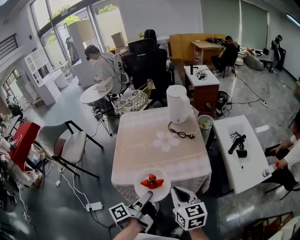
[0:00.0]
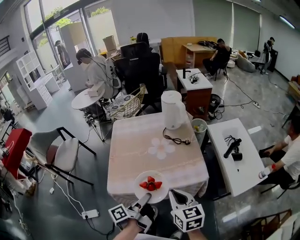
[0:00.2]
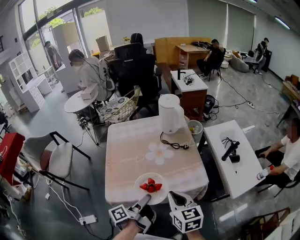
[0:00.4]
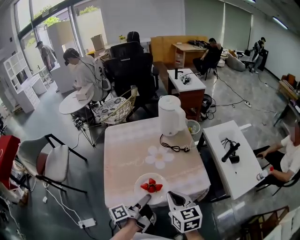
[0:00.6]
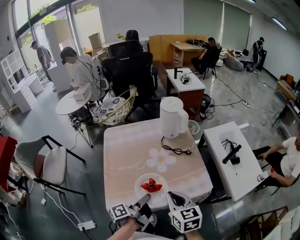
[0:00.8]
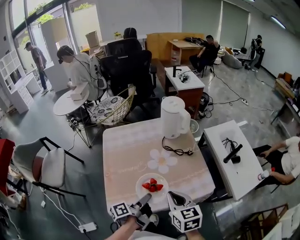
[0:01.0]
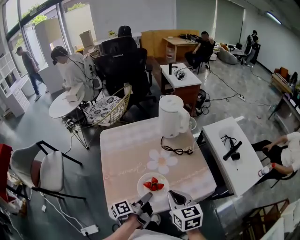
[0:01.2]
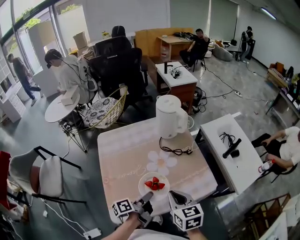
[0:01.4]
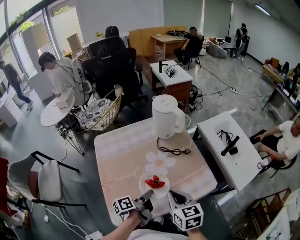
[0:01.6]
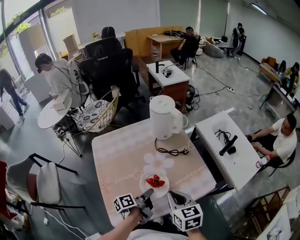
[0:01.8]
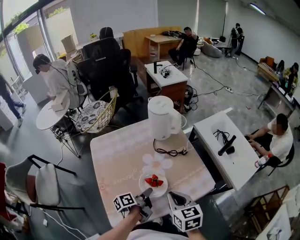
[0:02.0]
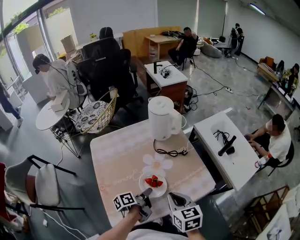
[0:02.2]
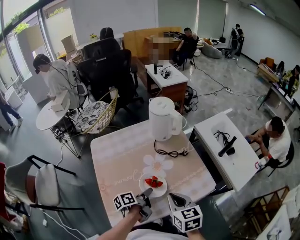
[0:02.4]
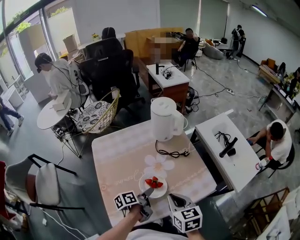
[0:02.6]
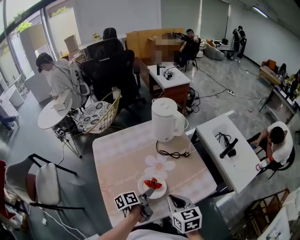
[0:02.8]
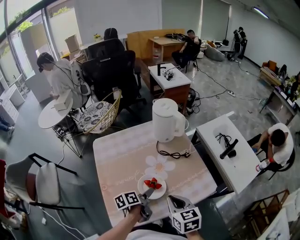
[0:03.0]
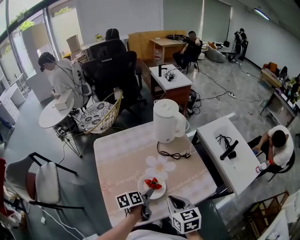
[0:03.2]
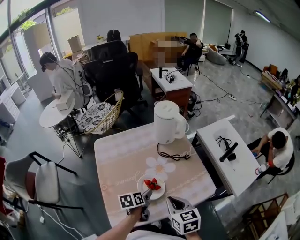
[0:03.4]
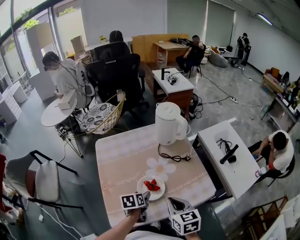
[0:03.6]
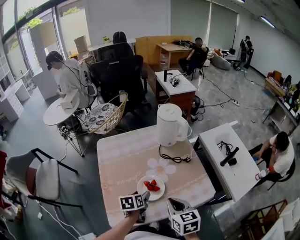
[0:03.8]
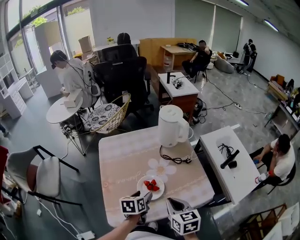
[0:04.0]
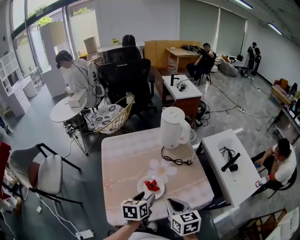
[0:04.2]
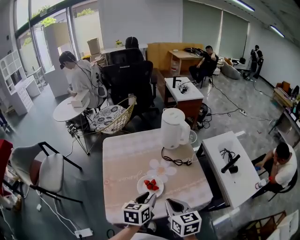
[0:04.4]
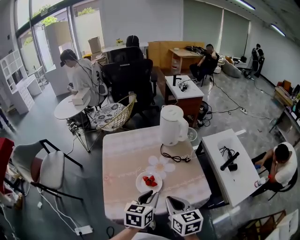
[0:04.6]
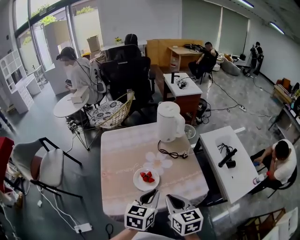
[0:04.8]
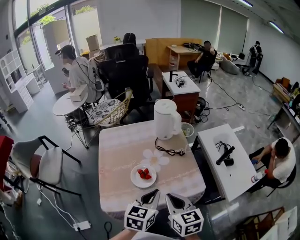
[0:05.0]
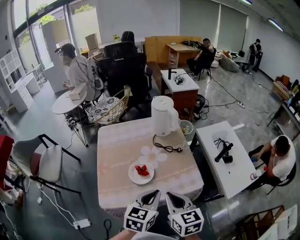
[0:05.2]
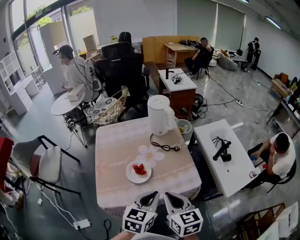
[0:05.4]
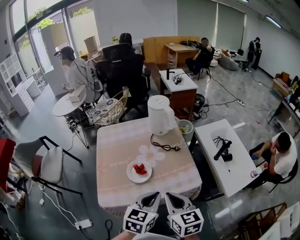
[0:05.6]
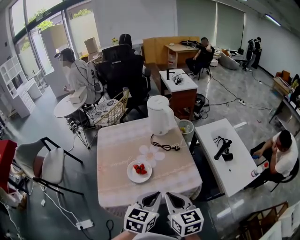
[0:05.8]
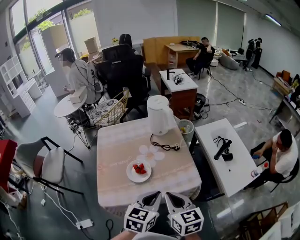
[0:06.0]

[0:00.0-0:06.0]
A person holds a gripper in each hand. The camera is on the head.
0:00.0 to 0:01.6: The right gripper ends up approximately 20 cm from where it was.
0:04.4 to 0:06.0: The right gripper changes place by approximately 10 cm.

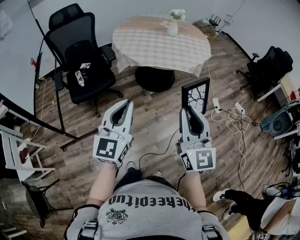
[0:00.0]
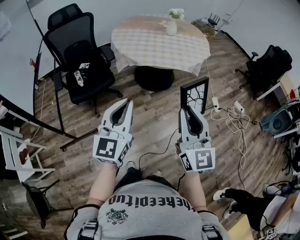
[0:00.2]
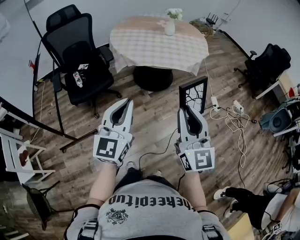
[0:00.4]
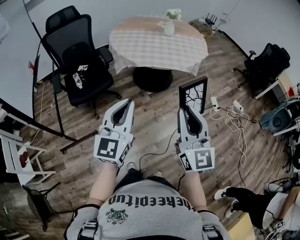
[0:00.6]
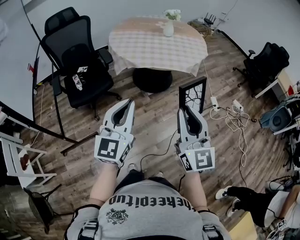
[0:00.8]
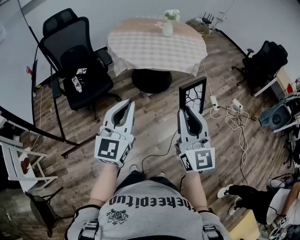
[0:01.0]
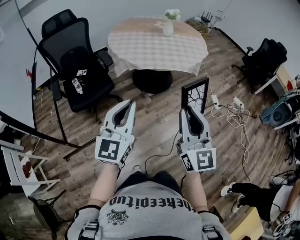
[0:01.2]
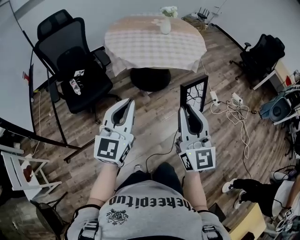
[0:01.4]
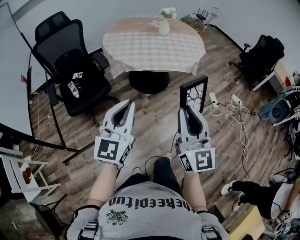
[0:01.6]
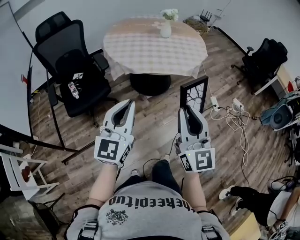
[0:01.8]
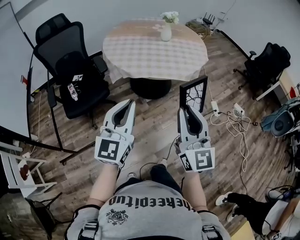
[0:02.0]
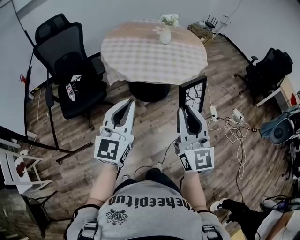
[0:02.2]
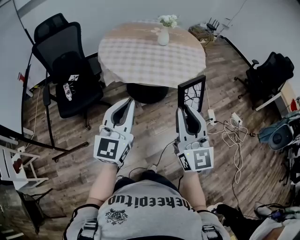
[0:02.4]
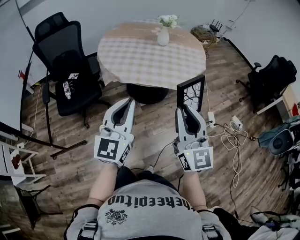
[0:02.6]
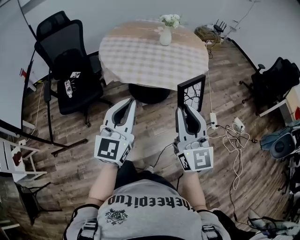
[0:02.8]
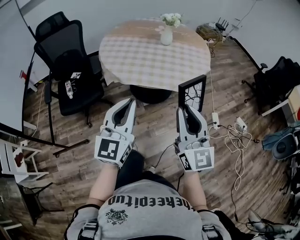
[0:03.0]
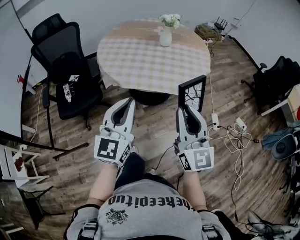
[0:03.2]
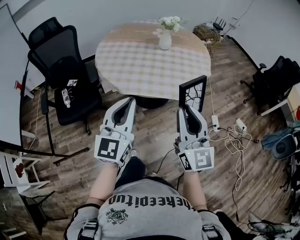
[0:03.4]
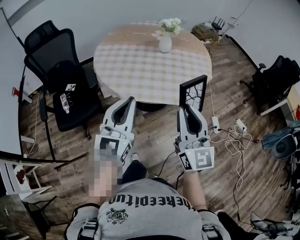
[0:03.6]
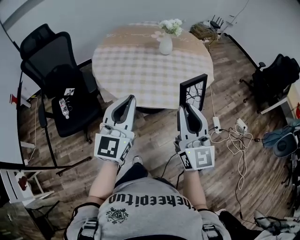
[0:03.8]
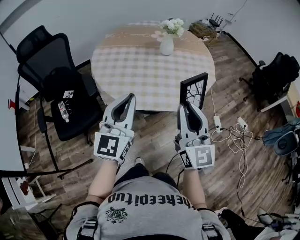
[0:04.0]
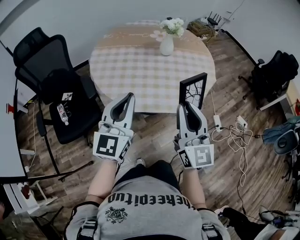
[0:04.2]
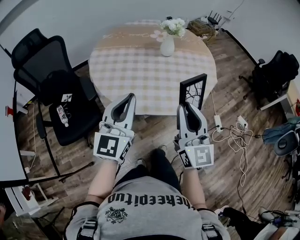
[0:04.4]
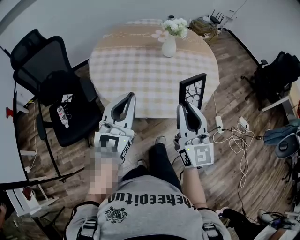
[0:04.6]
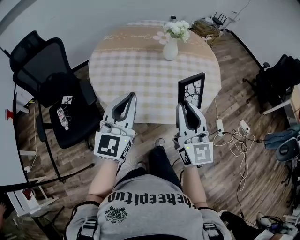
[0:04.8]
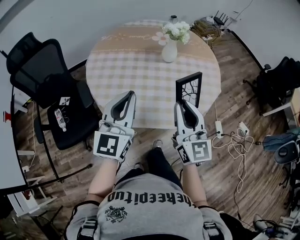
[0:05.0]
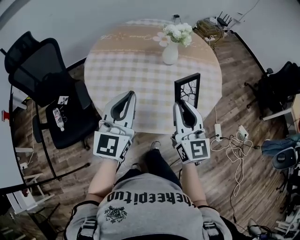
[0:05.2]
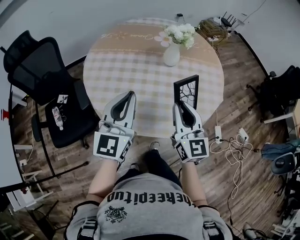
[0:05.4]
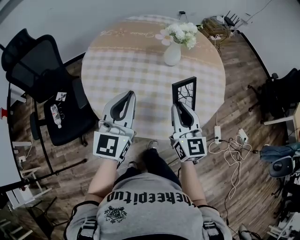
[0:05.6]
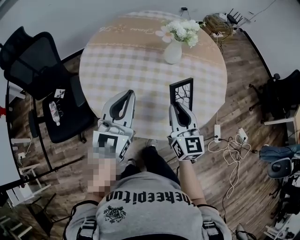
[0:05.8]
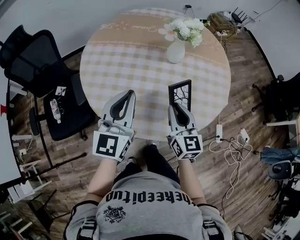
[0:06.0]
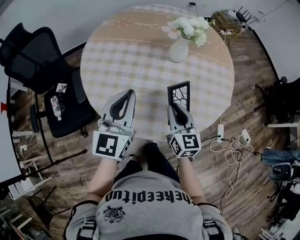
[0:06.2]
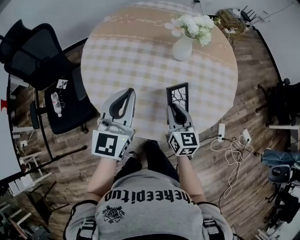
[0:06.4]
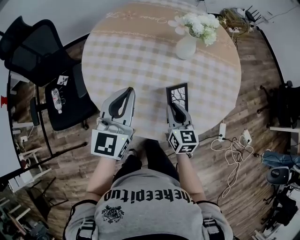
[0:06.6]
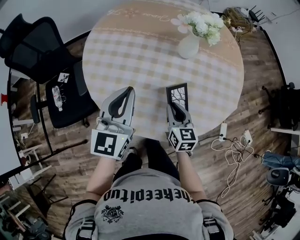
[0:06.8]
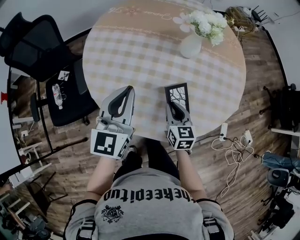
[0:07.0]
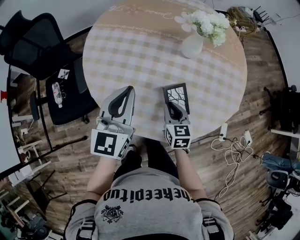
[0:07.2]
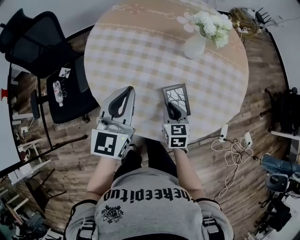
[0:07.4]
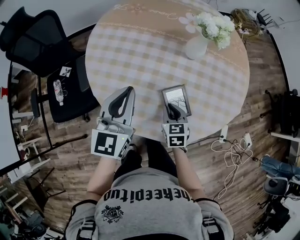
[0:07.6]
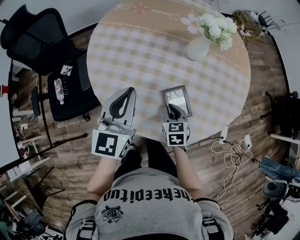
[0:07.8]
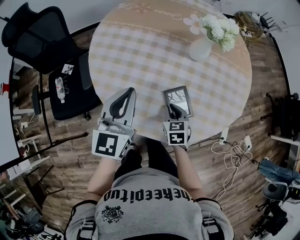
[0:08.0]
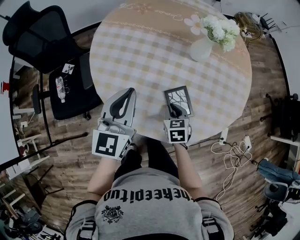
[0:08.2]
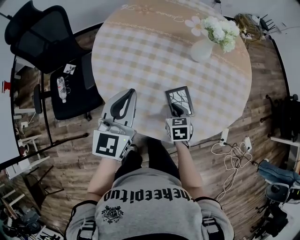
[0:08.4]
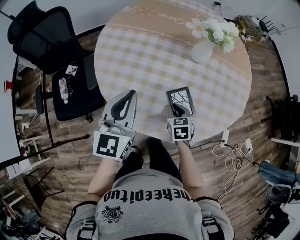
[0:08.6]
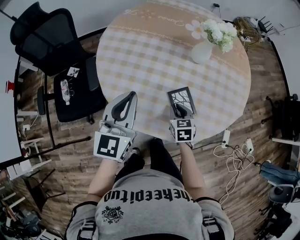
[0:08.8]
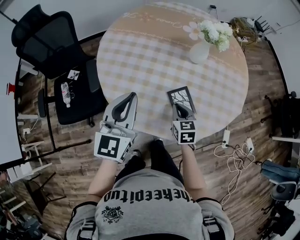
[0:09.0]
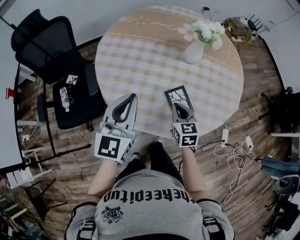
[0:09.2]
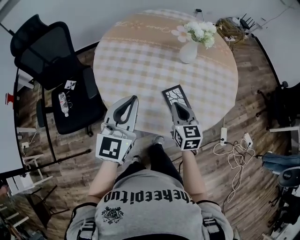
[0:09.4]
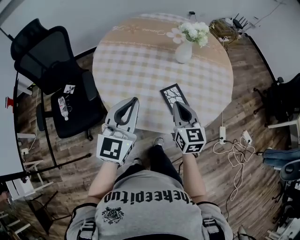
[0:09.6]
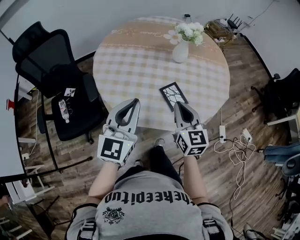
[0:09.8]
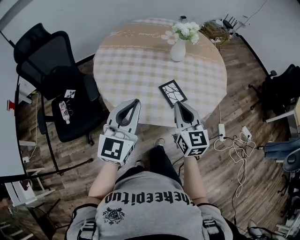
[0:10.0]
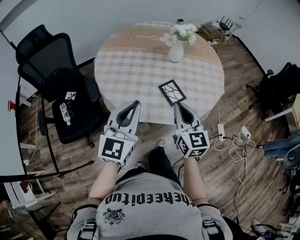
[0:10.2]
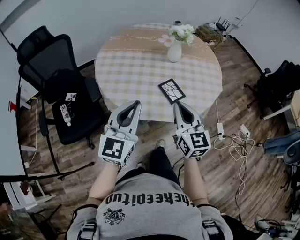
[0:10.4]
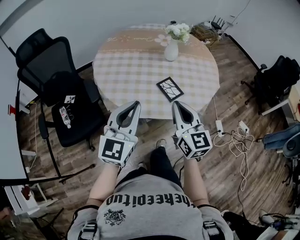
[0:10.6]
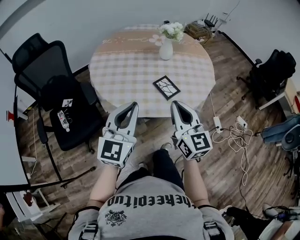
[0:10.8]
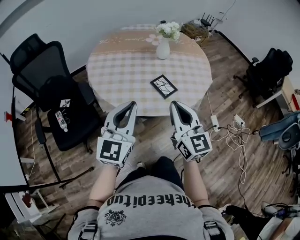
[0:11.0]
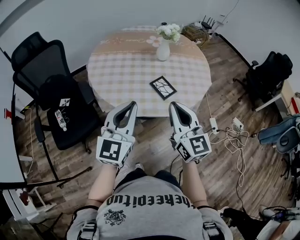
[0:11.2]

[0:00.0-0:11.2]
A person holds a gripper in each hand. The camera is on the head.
0:00.0 to 0:01.6: The left gripper goes roughly 5 cm forward, while the right gripper moves about 5 cm.
0:01.6 to 0:03.2: Both grippers travel together forward and to the right, roughly 25 cm.
0:03.2 to 0:04.8: The grippers both shift forward by roughly 25 cm.
0:04.8 to 0:06.4: The left gripper heads forward and downward, covering about 15 cm. The right gripper travels downward and forward by some 30 cm, and swivels about 30 degrees.
0:06.4 to 0:08.0: The right gripper heads downward, covering approximately 10 cm, and turns by some 30 degrees; the left gripper changes place by approximately 5 cm.
0:08.0 to 0:09.6: The left gripper heads backward and upward, covering roughly 10 cm. The right gripper shifts some 20 cm upward, and changes its angle by roughly 30 degrees.
0:09.6 to 0:11.2: The left gripper goes about 15 cm backward; the right gripper moves backward and upward, approximately 25 cm, and swivels about 20 degrees.

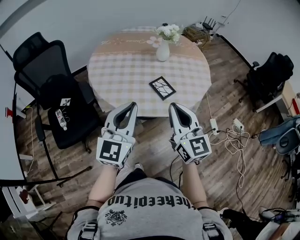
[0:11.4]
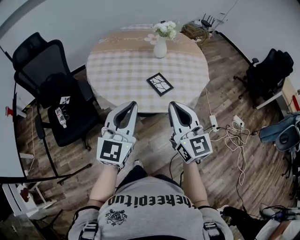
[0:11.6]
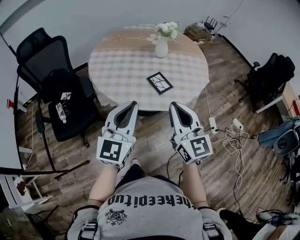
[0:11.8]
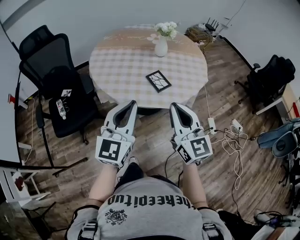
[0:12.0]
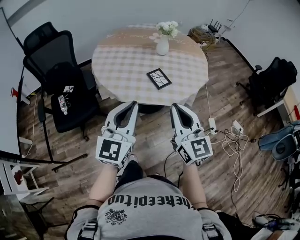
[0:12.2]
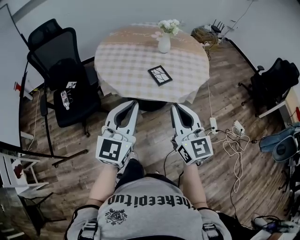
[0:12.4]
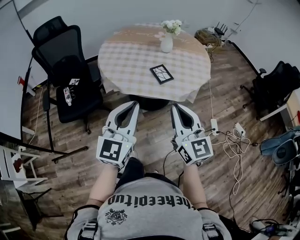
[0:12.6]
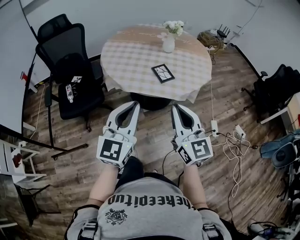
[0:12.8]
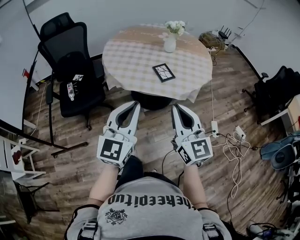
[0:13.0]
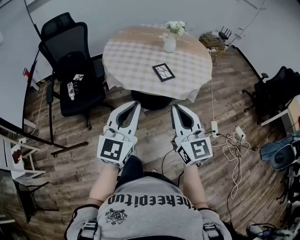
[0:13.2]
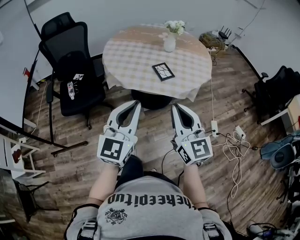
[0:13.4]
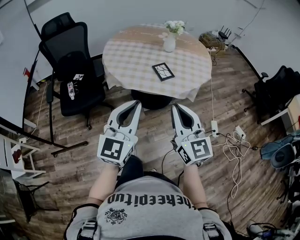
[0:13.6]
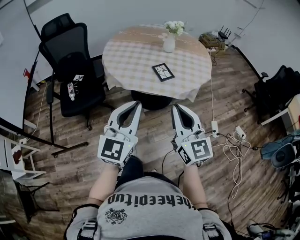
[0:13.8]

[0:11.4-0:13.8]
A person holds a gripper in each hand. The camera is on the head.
0:11.4 to 0:12.6: The two grippers go roughly 15 cm backward and to the right.
0:12.6 to 0:13.8: The left gripper changes place by approximately 5 cm.

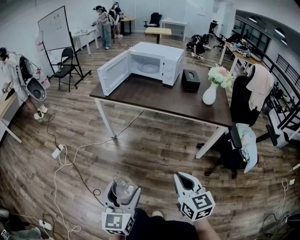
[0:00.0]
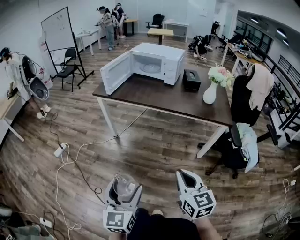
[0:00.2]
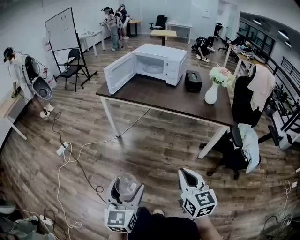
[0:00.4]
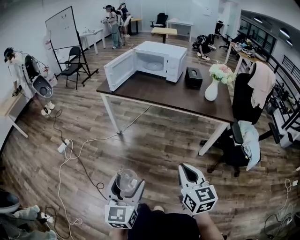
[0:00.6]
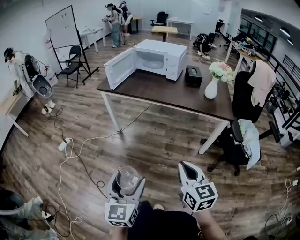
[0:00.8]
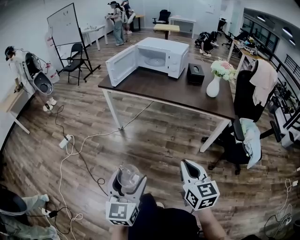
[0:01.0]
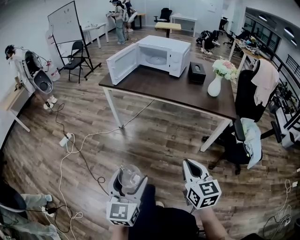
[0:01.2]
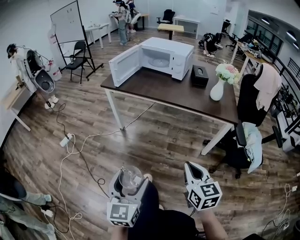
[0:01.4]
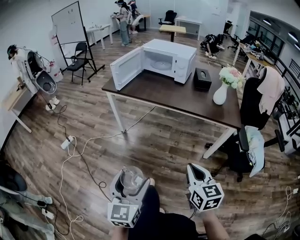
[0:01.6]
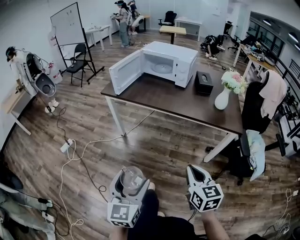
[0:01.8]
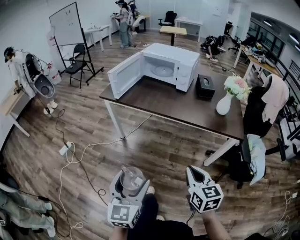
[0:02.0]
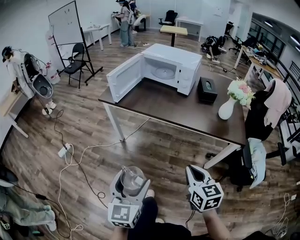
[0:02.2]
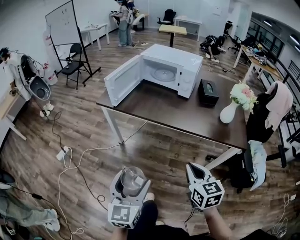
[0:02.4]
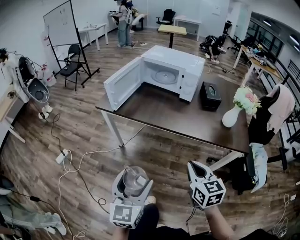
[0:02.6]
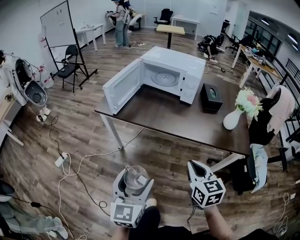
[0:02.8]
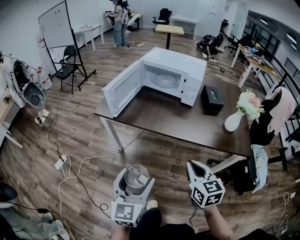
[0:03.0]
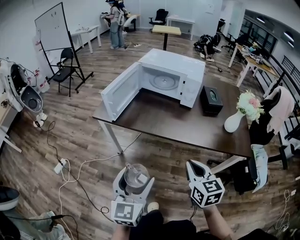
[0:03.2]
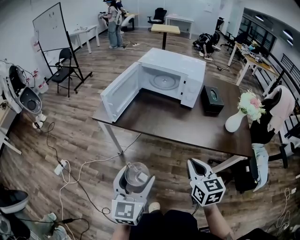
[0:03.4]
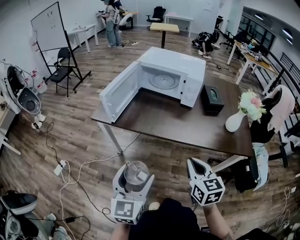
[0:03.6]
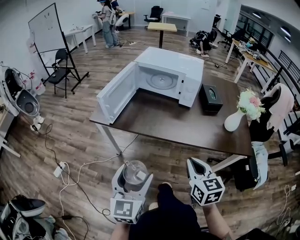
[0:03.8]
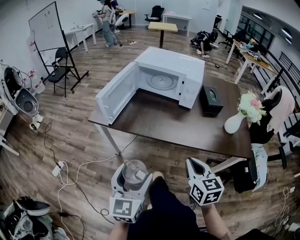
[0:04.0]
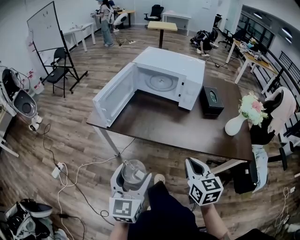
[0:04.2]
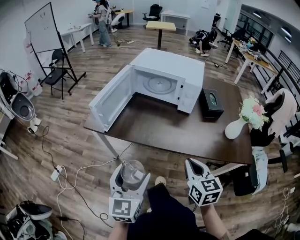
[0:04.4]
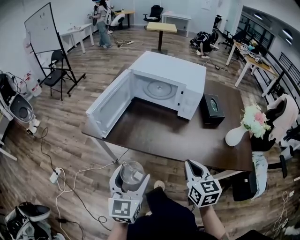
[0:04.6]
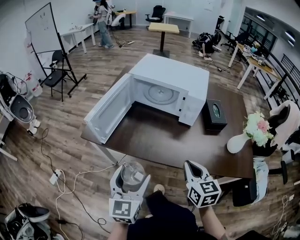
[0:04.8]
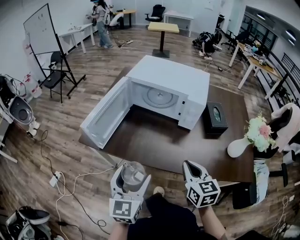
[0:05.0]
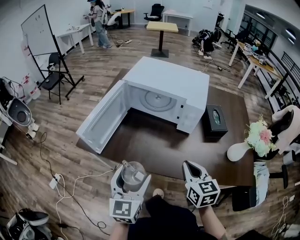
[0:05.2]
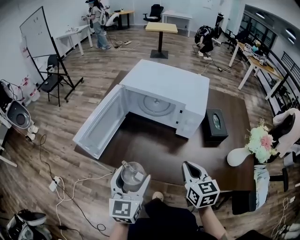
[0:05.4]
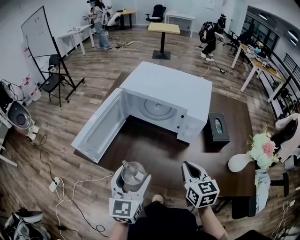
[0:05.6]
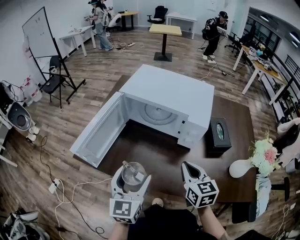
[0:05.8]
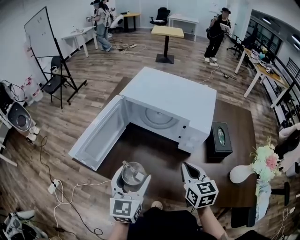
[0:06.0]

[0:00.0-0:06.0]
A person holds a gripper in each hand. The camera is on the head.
0:01.6 to 0:03.0: Both grippers travel together forward, some 30 cm.
0:03.0 to 0:04.4: The grippers both shift forward by about 10 cm.
0:04.4 to 0:06.0: Both grippers travel together forward, about 25 cm.
